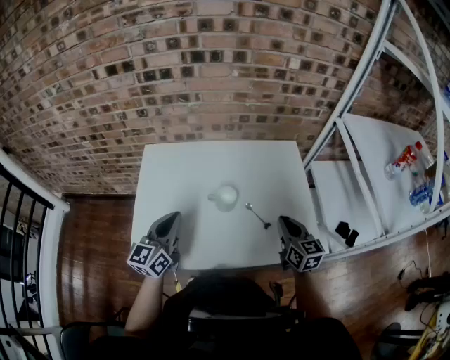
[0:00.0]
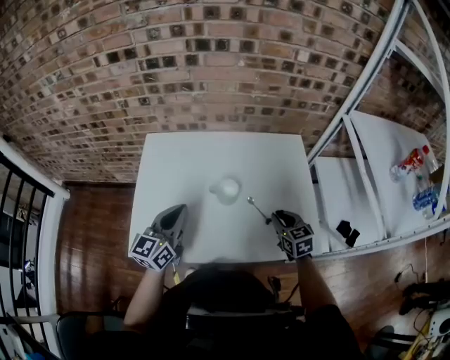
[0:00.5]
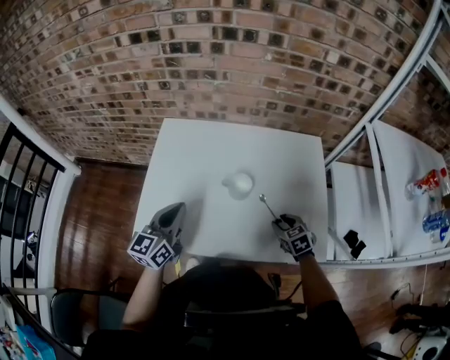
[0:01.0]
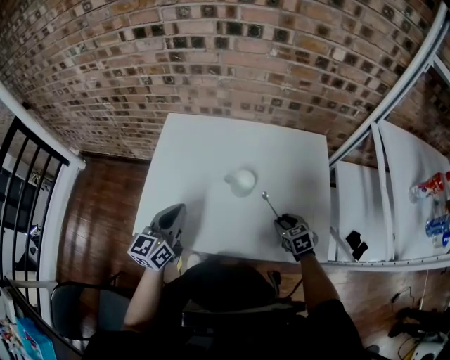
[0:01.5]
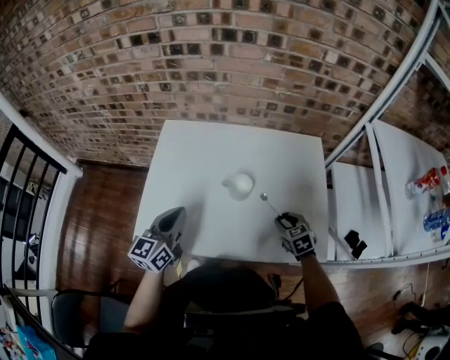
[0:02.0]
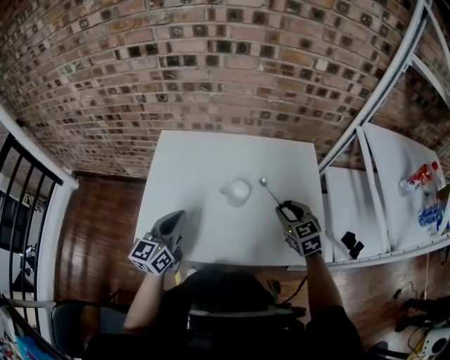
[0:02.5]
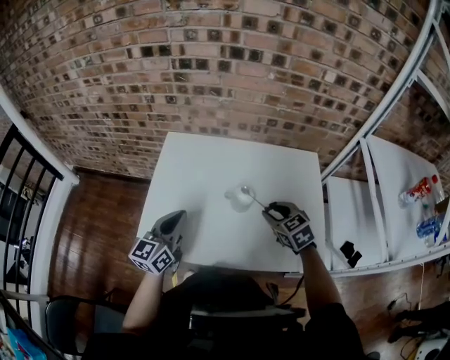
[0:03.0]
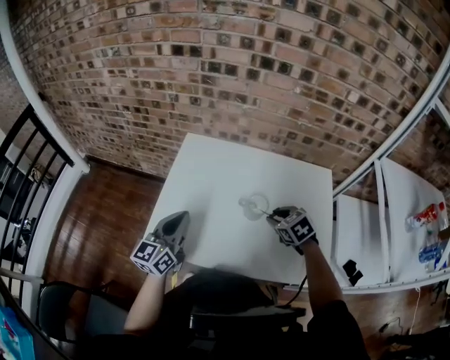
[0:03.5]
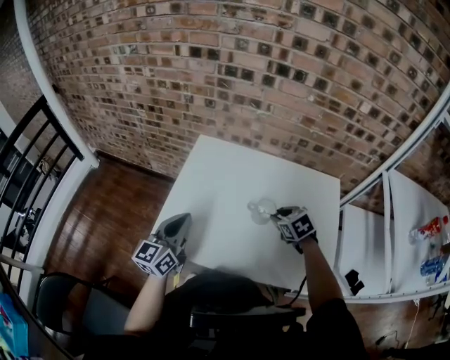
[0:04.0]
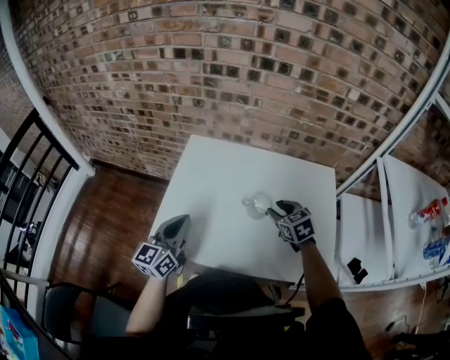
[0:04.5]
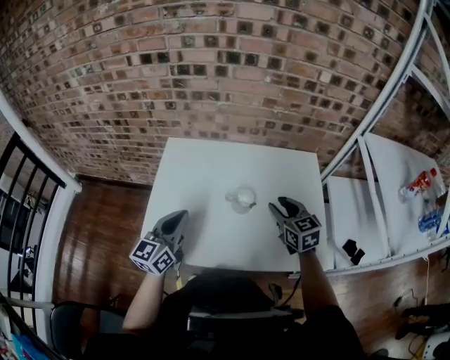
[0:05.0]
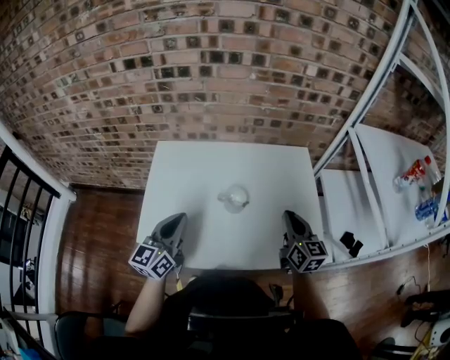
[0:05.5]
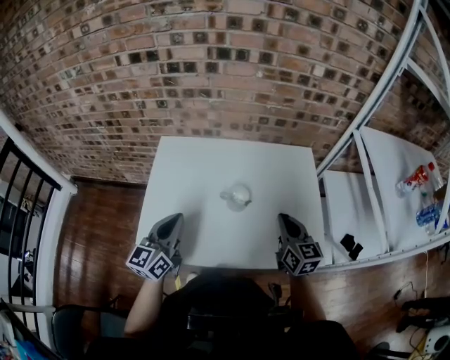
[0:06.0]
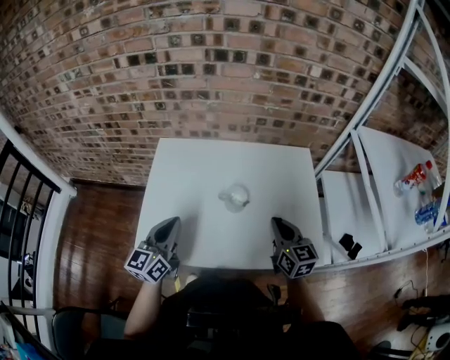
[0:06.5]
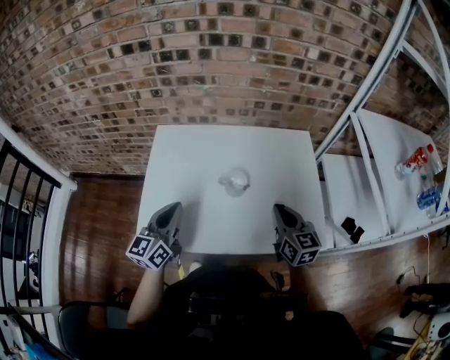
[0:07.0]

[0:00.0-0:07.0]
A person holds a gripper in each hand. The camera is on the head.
0:00.0 to 0:02.0: The right gripper heads downward, covering approximately 15 cm, tips its fingers downward by approximately 30 degrees, and opens its fingers.
0:02.0 to 0:03.5: The left gripper goes some 5 cm to the left; the right gripper moves to the left, upward and forward, roughly 15 cm.
0:03.5 to 0:05.0: The right gripper goes some 5 cm upward, and angles its fingers upward, by some 30 degrees.
0:05.0 to 0:07.0: The right gripper moves backward, about 10 cm, and closes.

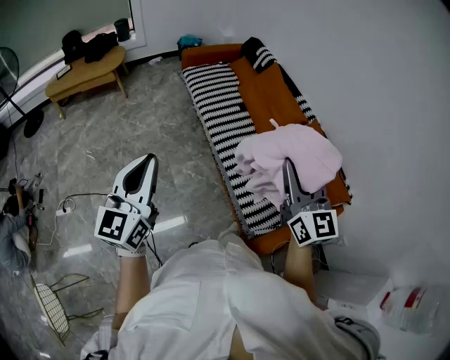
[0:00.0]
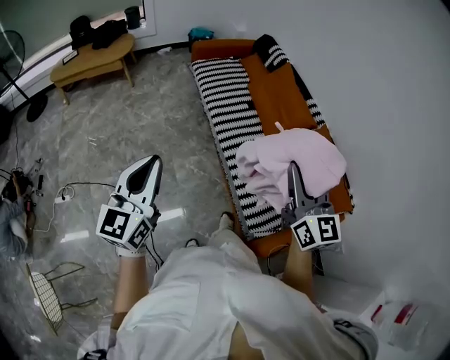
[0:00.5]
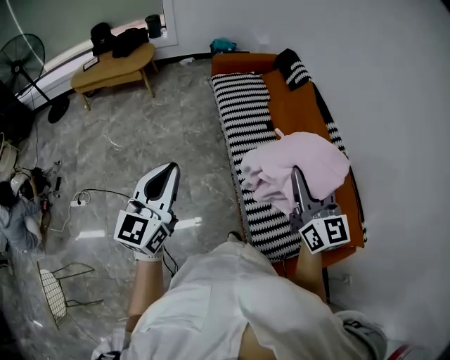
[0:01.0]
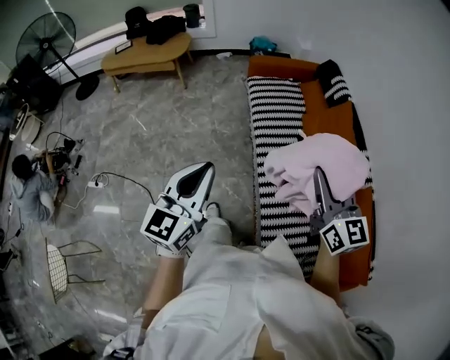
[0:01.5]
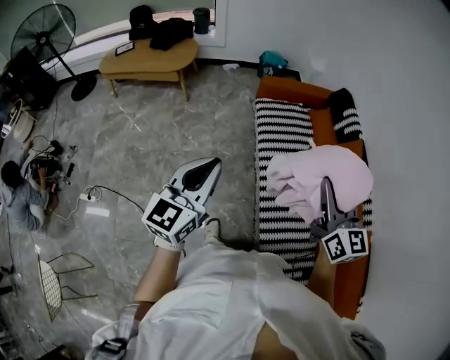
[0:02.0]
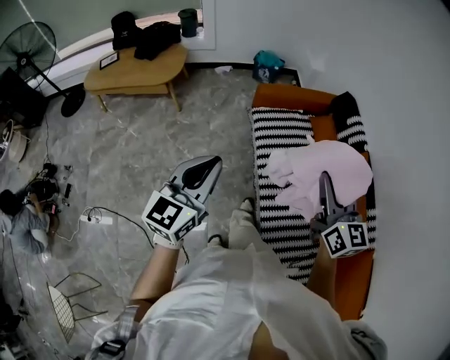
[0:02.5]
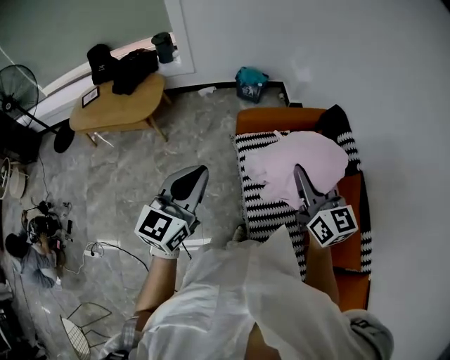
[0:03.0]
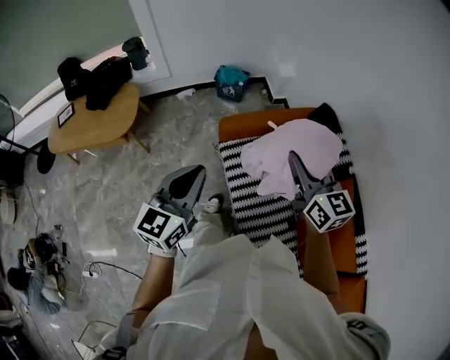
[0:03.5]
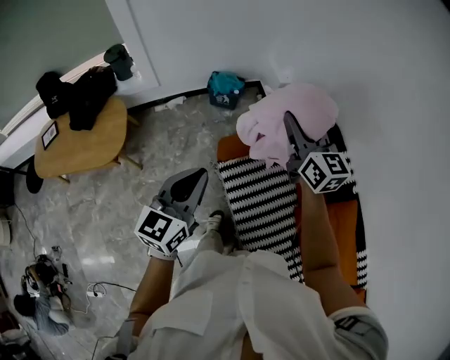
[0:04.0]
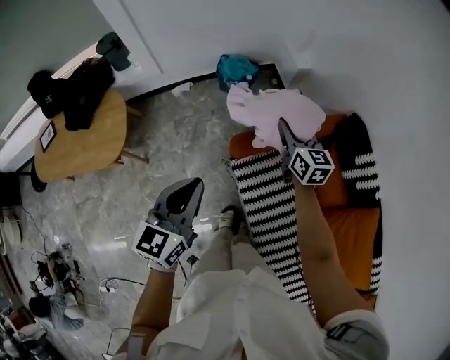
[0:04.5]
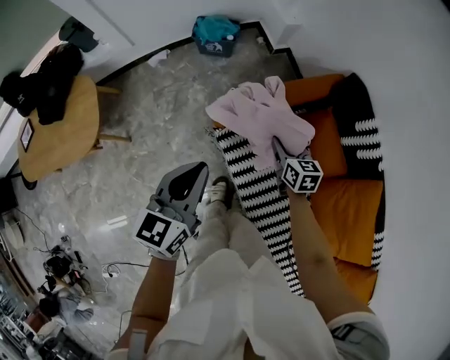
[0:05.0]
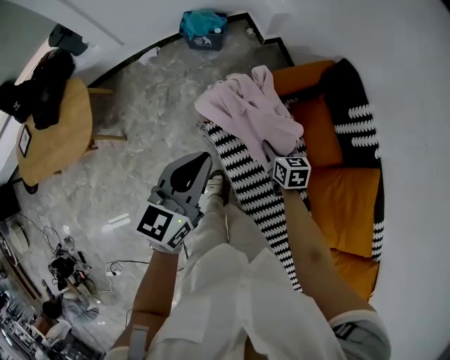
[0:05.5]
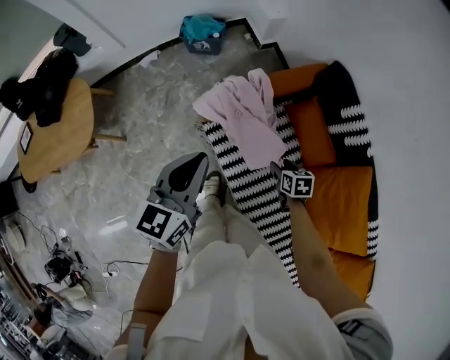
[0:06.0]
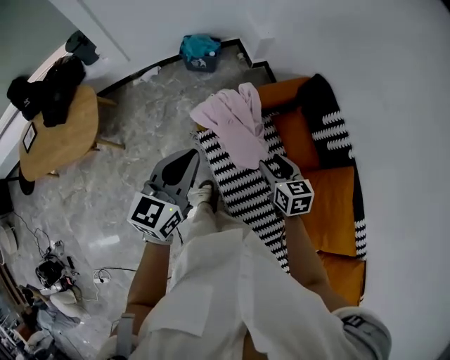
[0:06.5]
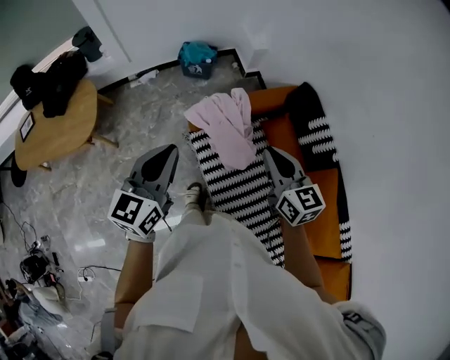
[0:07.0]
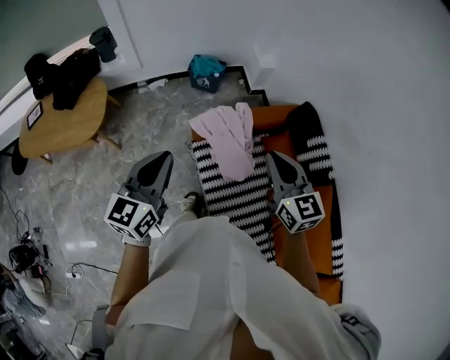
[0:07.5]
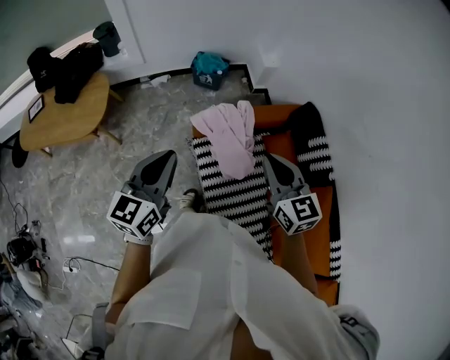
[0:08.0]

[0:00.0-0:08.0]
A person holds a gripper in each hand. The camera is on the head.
0:00.0 to 0:02.0: The grippers both shift forward by approximately 40 cm.
0:02.0 to 0:04.0: The pair of grippers is taken forward, about 70 cm.
0:04.0 to 0:06.0: The right gripper goes roughly 50 cm downward, points its fingers some 60 degrees further downward, and opens its fingers; the left gripper shifts about 15 cm downward, to the right and forward.
0:06.0 to 0:08.0: The left gripper heads upward and backward, covering some 15 cm; the right gripper moves upward, about 40 cm, tips its fingers upward by roughly 50 degrees, and closes.

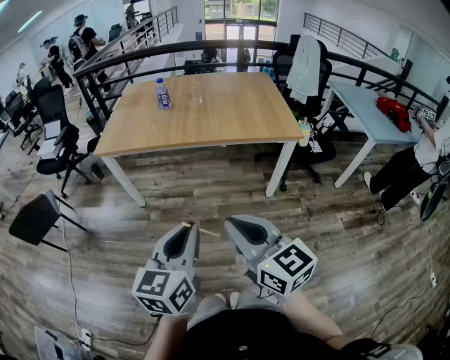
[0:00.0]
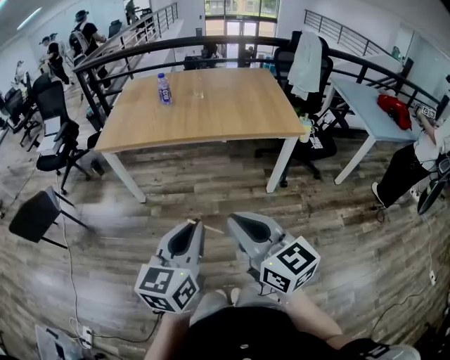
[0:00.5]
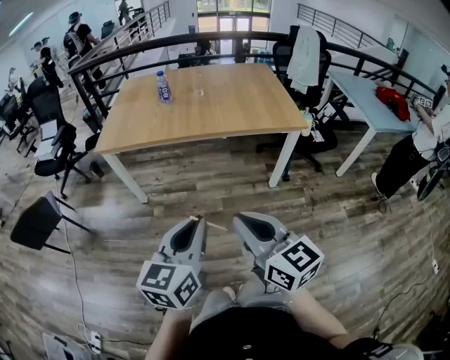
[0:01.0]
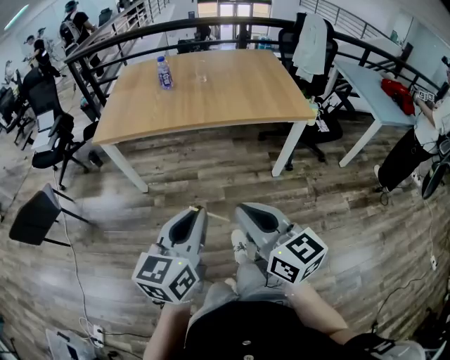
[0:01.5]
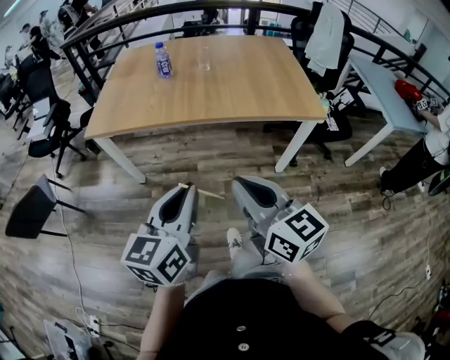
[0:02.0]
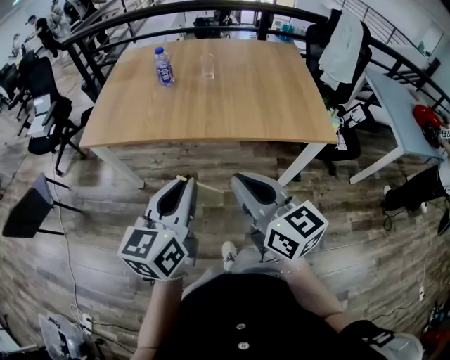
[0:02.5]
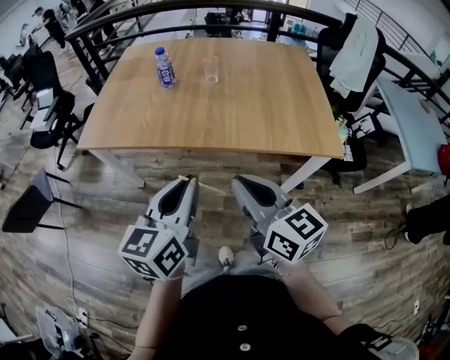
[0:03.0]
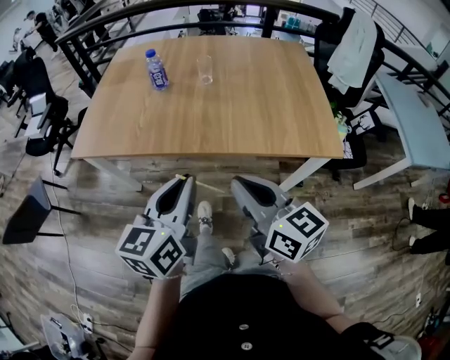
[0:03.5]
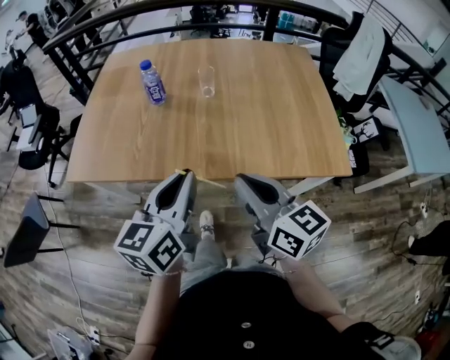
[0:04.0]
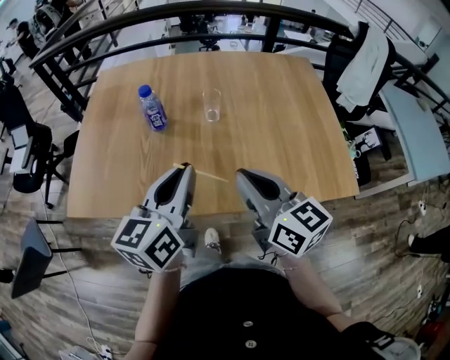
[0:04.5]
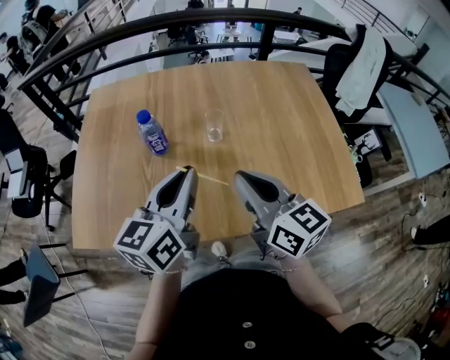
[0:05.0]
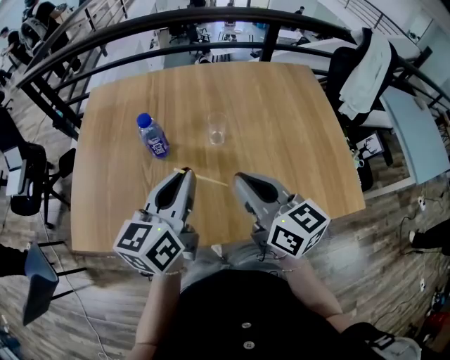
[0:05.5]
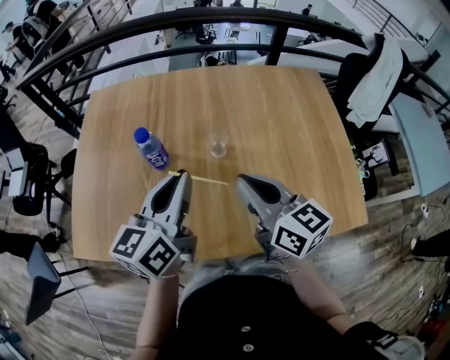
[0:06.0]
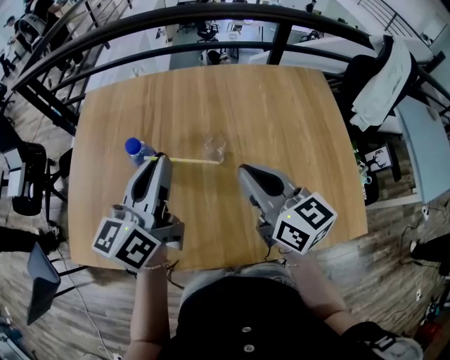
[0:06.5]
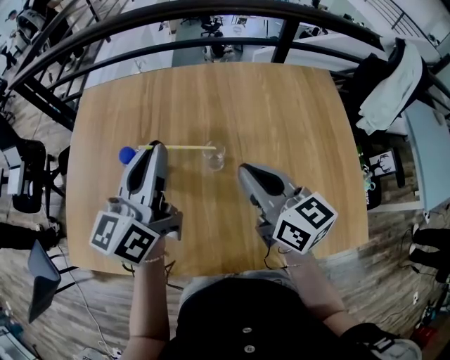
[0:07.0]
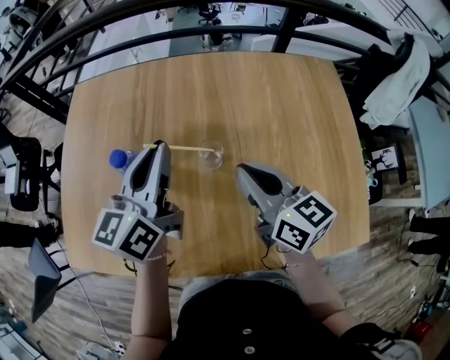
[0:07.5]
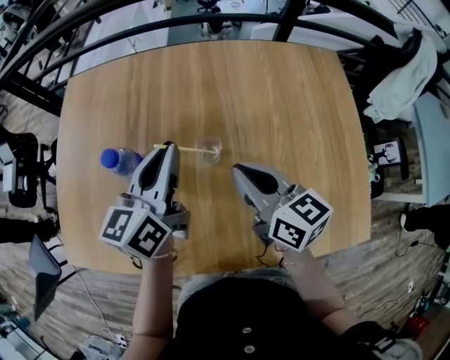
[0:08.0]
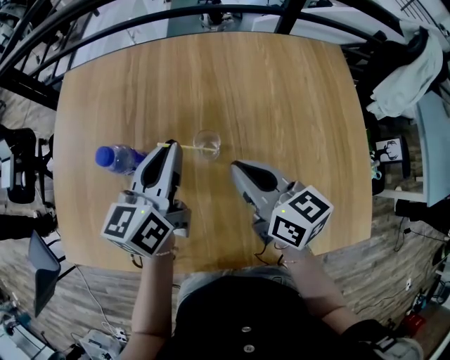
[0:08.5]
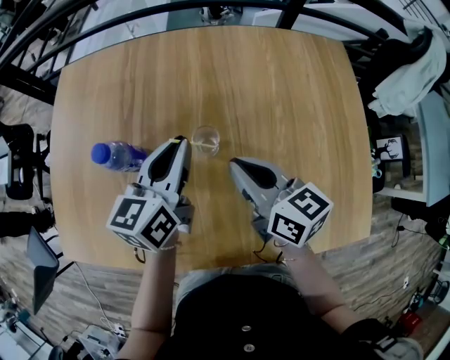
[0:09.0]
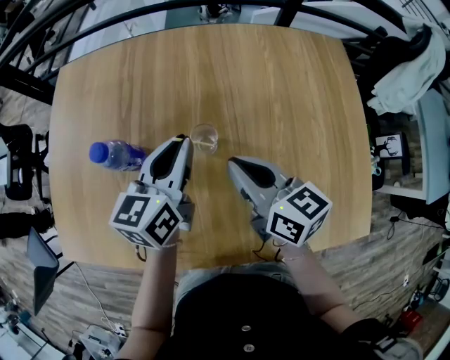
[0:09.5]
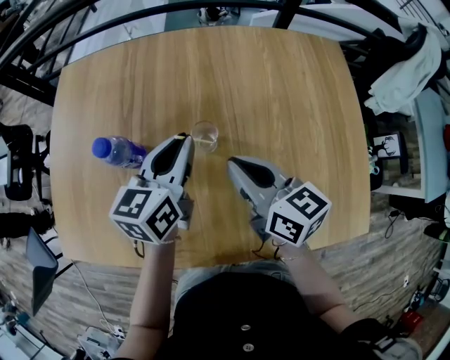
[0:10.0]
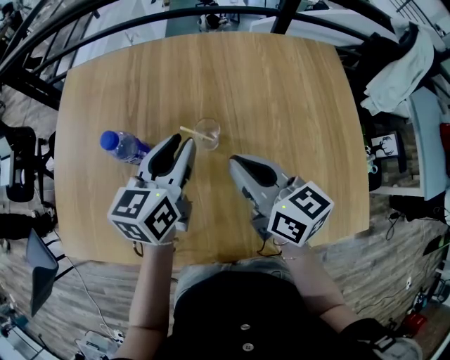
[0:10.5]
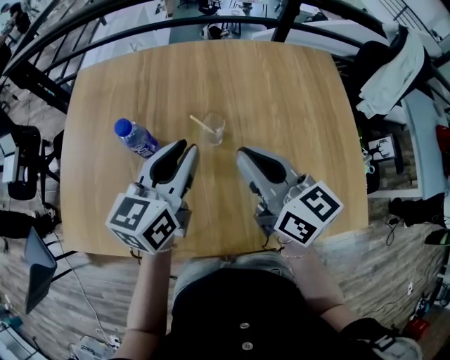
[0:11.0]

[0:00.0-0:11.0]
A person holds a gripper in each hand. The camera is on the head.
0:00.0 to 0:02.0: The two grippers go about 15 cm forward.
0:02.0 to 0:03.5: The two grippers go about 25 cm forward.
0:03.5 to 0:05.5: Both grippers move forward, about 35 cm.
0:05.5 to 0:07.5: The two grippers go about 20 cm forward.
0:07.5 to 0:09.0: The left gripper moves downward, about 10 cm, while the right gripper goes some 5 cm downward.
0:09.0 to 0:11.0: The right gripper moves upward and backward, roughly 10 cm; the left gripper heads backward and upward, covering roughly 10 cm.

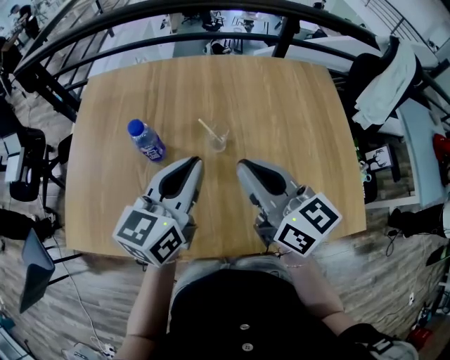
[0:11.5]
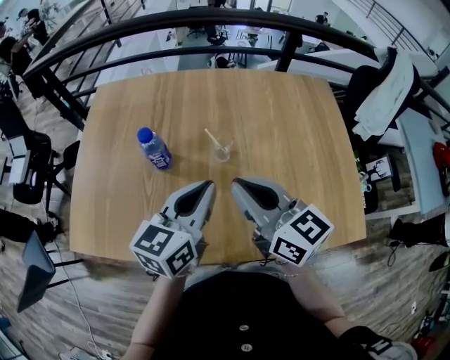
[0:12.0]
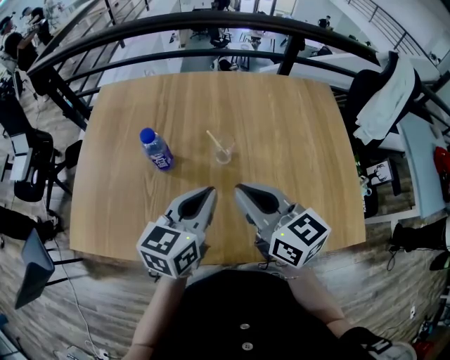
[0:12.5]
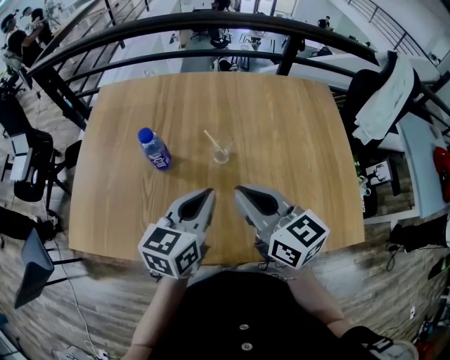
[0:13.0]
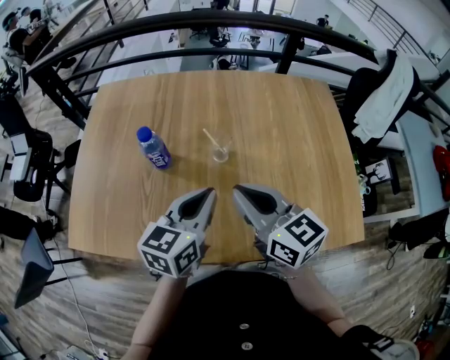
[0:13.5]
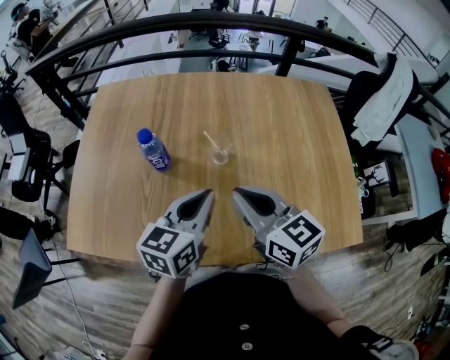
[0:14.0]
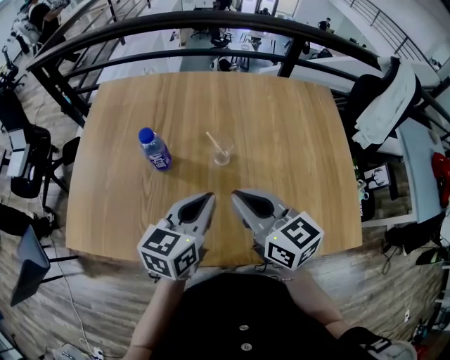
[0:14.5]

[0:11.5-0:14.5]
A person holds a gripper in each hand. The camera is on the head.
0:11.5 to 0:13.0: The left gripper shifts by roughly 5 cm.
0:13.0 to 0:14.5: There are only small adjustments of the grippers.
